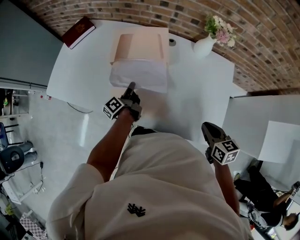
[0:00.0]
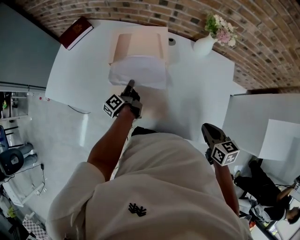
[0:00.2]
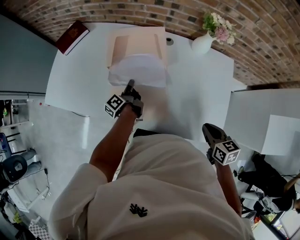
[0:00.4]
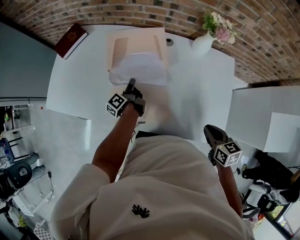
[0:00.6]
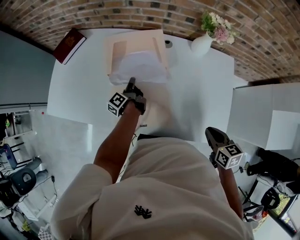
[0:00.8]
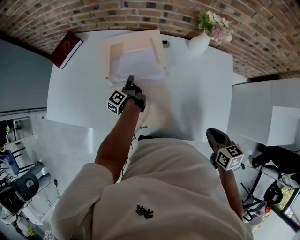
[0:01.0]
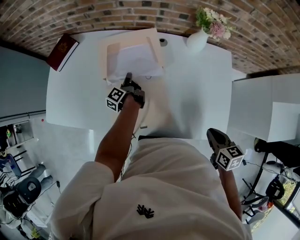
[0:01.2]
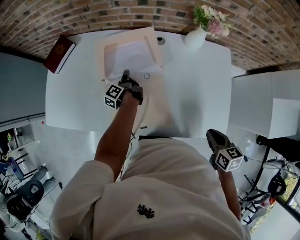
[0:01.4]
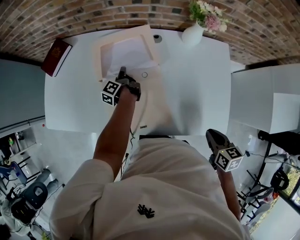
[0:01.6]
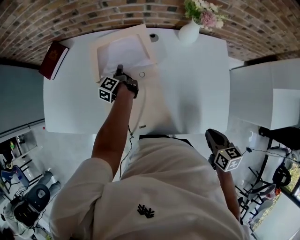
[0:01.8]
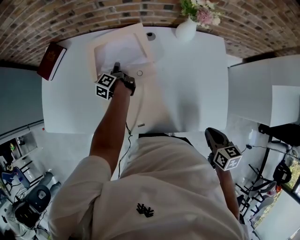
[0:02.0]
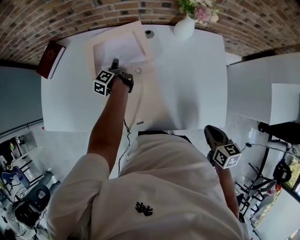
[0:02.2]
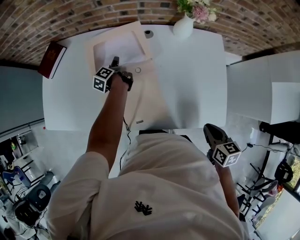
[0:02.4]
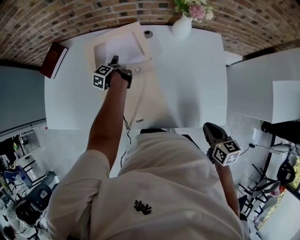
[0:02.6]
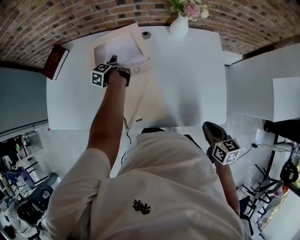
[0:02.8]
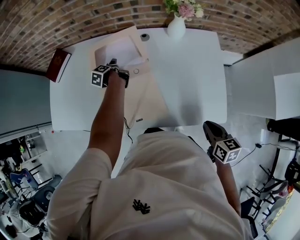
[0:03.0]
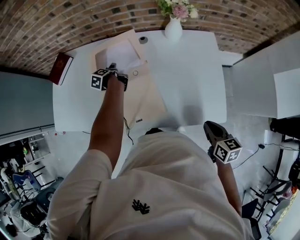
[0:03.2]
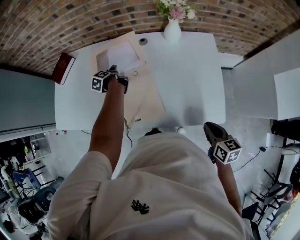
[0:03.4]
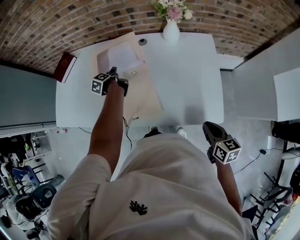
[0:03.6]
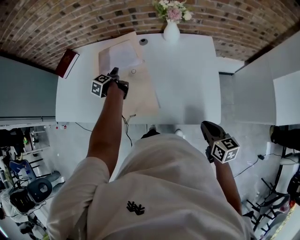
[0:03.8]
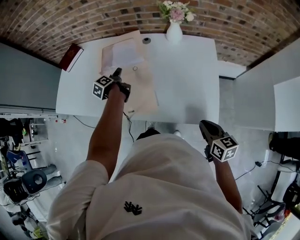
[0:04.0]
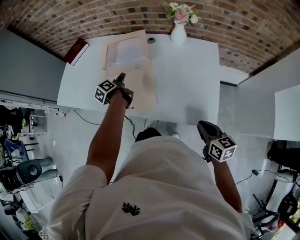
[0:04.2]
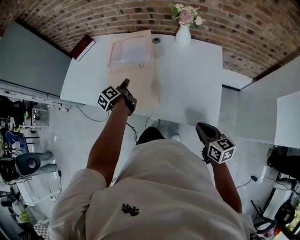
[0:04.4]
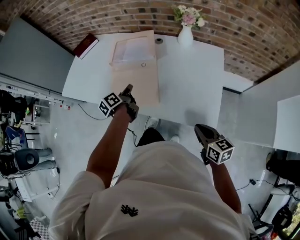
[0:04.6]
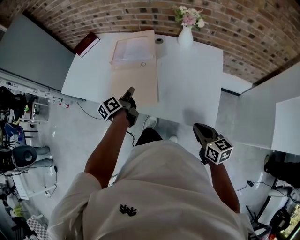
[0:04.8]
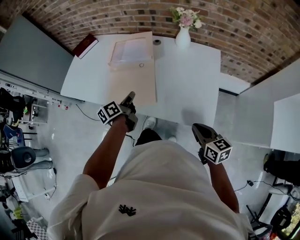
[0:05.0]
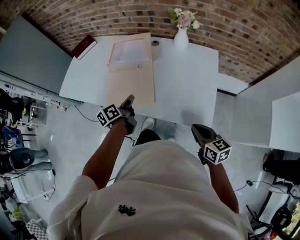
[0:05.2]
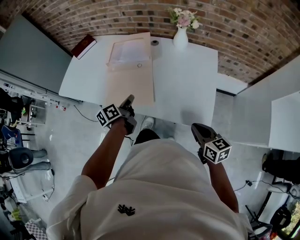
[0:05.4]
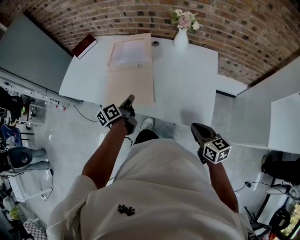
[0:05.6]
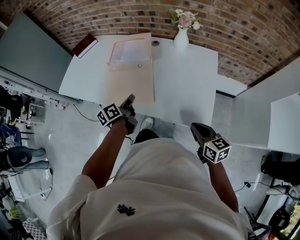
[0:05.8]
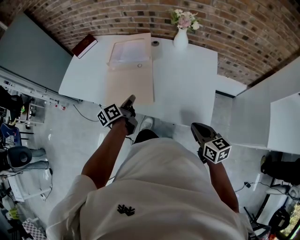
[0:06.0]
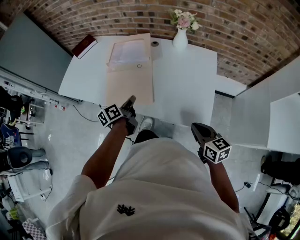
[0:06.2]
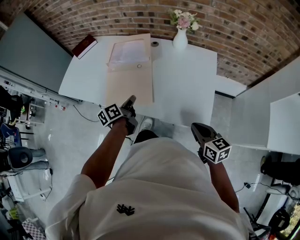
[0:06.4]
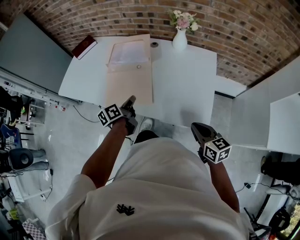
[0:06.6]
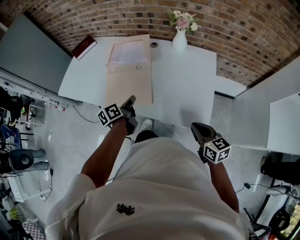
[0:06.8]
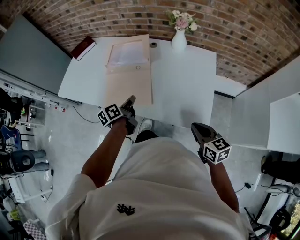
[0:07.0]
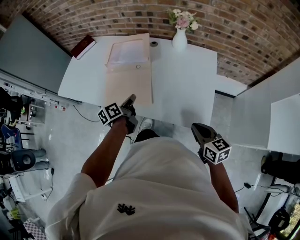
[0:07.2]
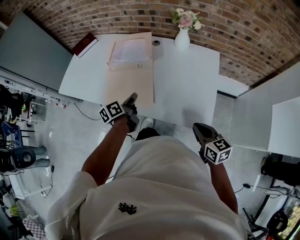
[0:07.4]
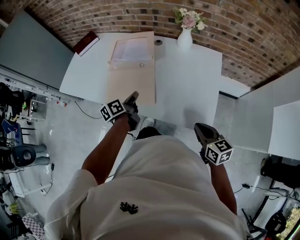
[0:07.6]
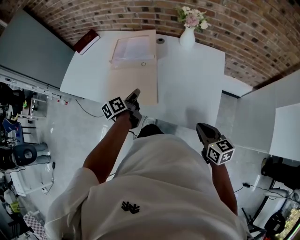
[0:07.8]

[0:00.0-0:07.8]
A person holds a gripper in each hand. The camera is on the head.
0:00.0 to 0:01.6: The left gripper is displaced forward by some 15 cm.
0:01.6 to 0:03.2: The right gripper goes roughly 5 cm backward. Meanwhile the left gripper rotates some 20 degrees, and opens.
0:03.2 to 0:04.6: The left gripper travels backward by some 30 cm, swivels roughly 20 degrees, and closes its fingers, while the right gripper goes some 10 cm backward, and swivels about 30 degrees.
0:04.6 to 0:06.2: The left gripper shifts approximately 10 cm backward.
0:06.2 to 0:07.8: The left gripper is displaced forward by roughly 5 cm.

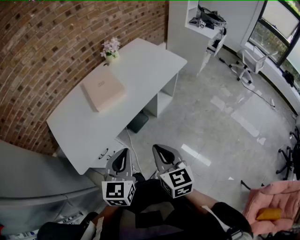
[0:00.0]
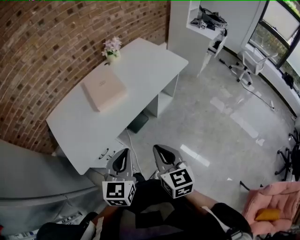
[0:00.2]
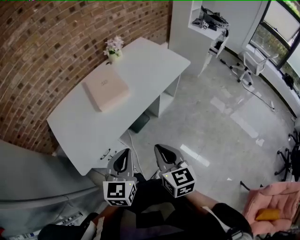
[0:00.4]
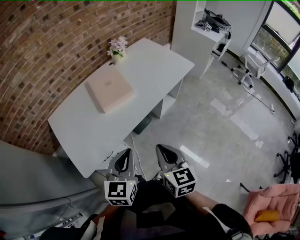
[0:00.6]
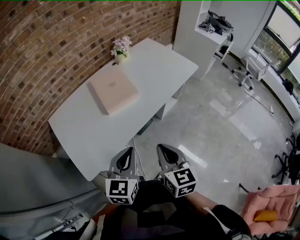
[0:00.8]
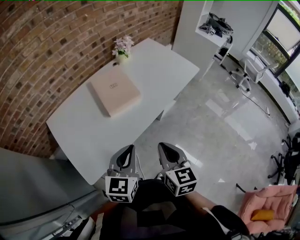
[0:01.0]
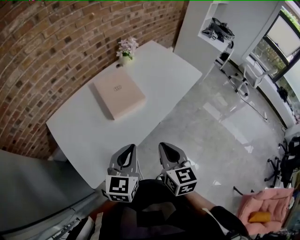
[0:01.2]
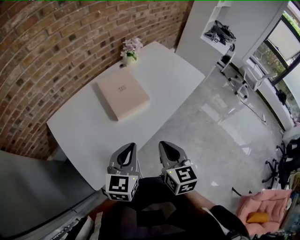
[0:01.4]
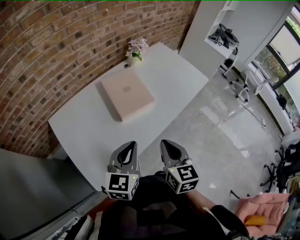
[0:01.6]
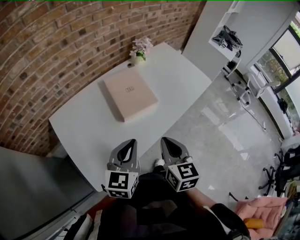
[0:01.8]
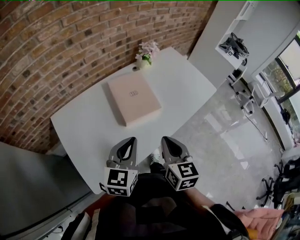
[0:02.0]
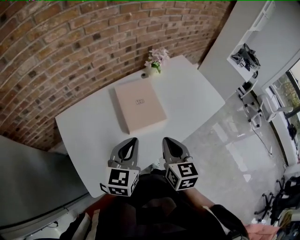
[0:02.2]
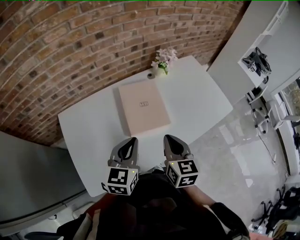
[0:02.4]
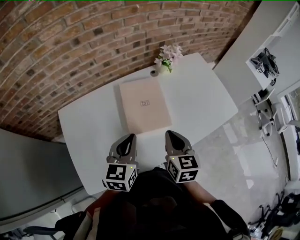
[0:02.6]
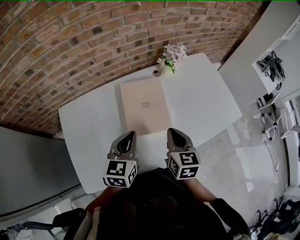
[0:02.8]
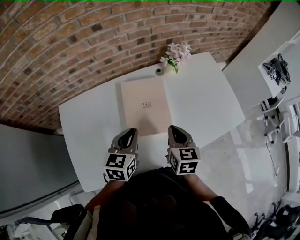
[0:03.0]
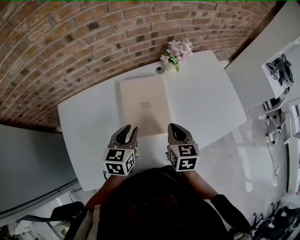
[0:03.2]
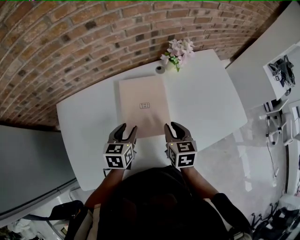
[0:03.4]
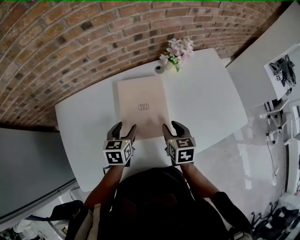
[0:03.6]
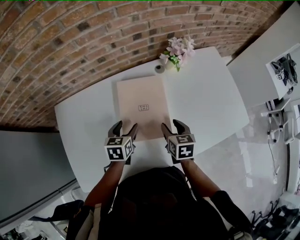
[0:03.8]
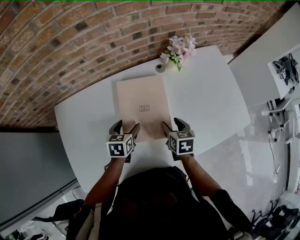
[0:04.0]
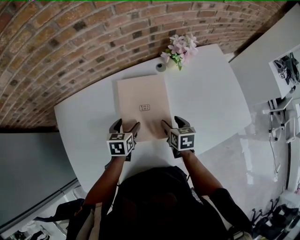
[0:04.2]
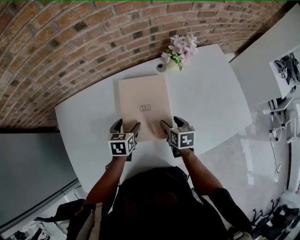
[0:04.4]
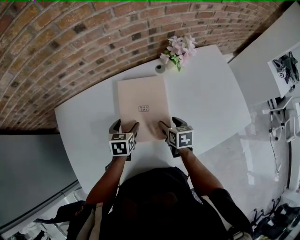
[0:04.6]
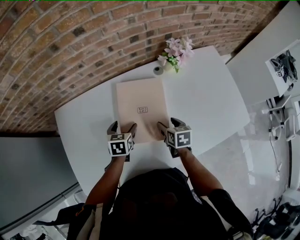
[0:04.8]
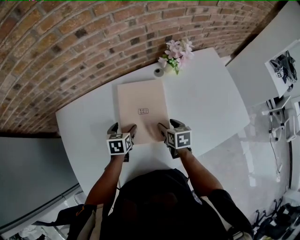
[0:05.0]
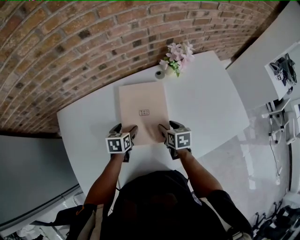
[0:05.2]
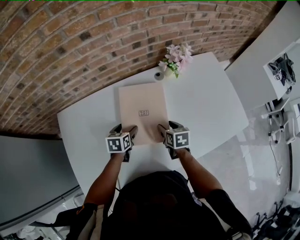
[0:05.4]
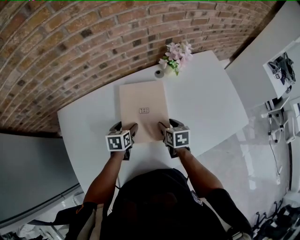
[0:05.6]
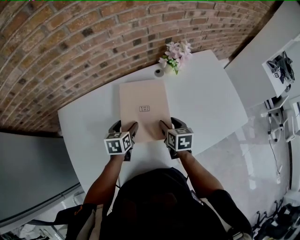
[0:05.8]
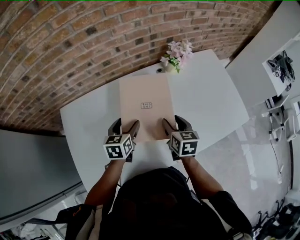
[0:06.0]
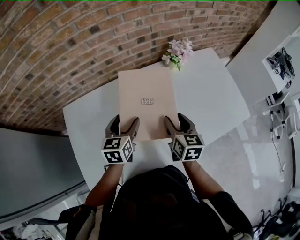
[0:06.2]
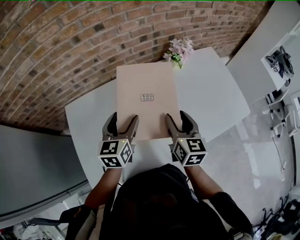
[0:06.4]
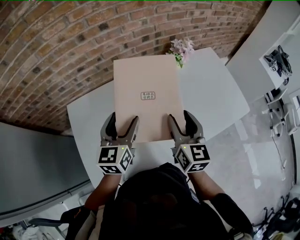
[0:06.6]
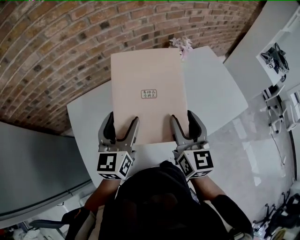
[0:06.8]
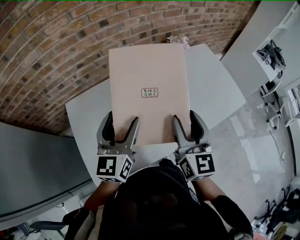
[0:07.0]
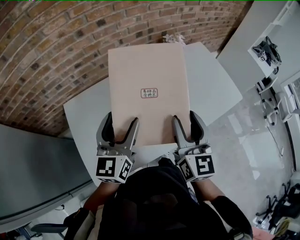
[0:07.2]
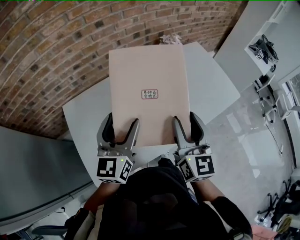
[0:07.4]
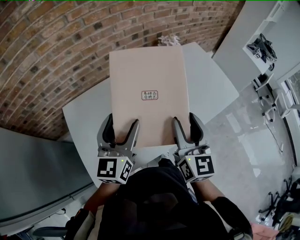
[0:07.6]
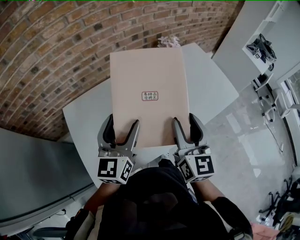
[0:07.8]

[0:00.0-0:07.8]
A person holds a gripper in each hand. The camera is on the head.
0:00.0 to 0:01.6: Both grippers travel together to the left and forward, approximately 20 cm.
0:01.6 to 0:03.2: The left gripper heads forward and downward, covering some 25 cm, and swivels some 30 degrees, while the right gripper heads forward, covering roughly 30 cm, and rotates roughly 20 degrees.
0:03.2 to 0:04.6: Both grippers travel together downward and forward, some 15 cm. The left gripper opens up. Meanwhile the right gripper opens up.
0:04.6 to 0:06.2: Both grippers travel together upward, about 15 cm. The right gripper rotates roughly 20 degrees.
0:06.2 to 0:07.8: Both grippers move upward and backward, roughly 20 cm. The left gripper rotates about 30 degrees; the right gripper rotates about 30 degrees.

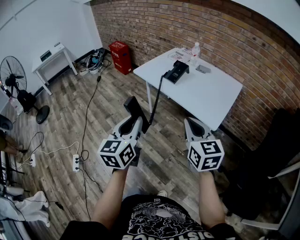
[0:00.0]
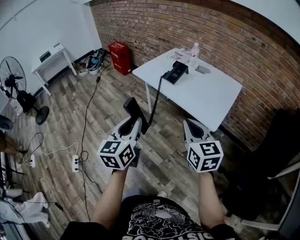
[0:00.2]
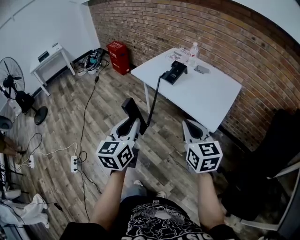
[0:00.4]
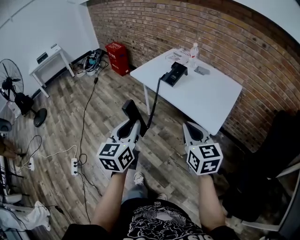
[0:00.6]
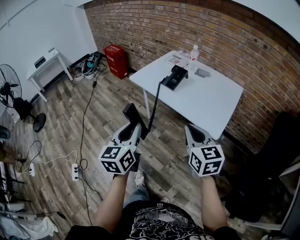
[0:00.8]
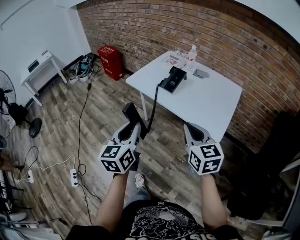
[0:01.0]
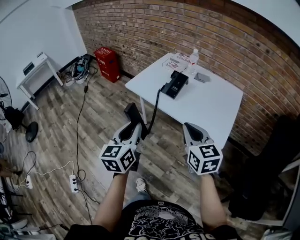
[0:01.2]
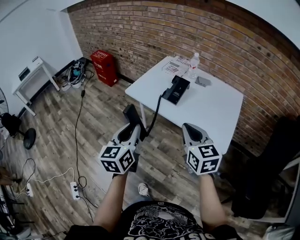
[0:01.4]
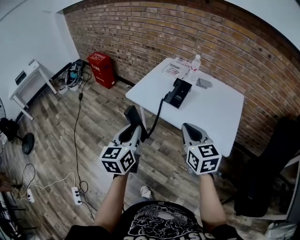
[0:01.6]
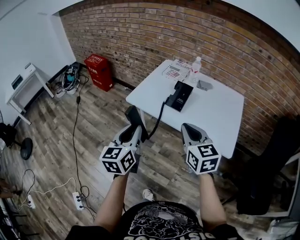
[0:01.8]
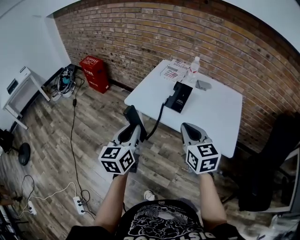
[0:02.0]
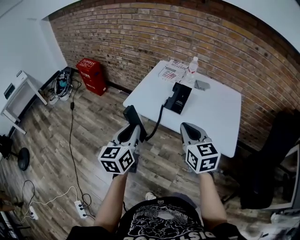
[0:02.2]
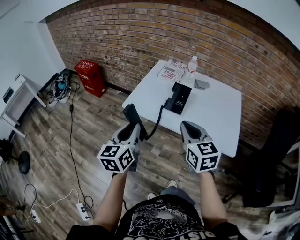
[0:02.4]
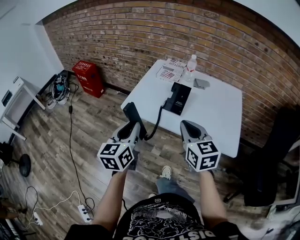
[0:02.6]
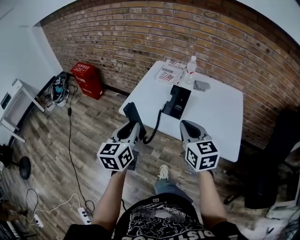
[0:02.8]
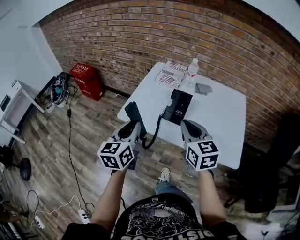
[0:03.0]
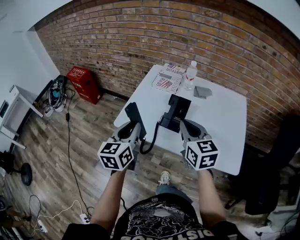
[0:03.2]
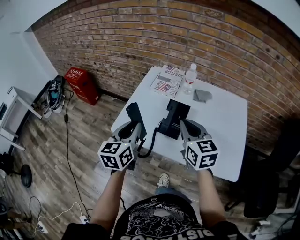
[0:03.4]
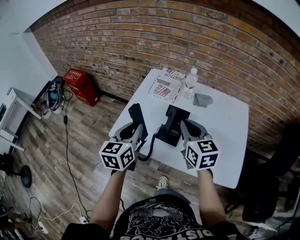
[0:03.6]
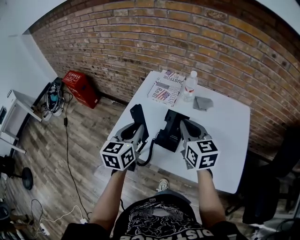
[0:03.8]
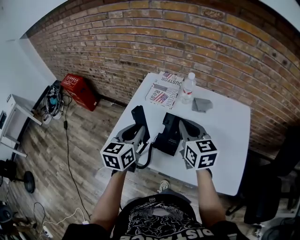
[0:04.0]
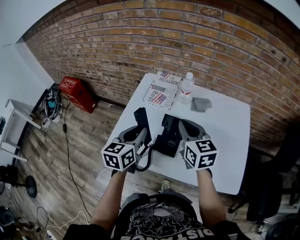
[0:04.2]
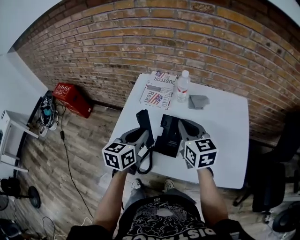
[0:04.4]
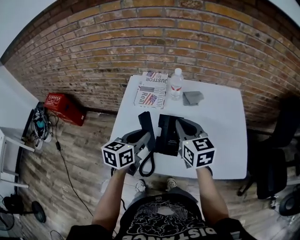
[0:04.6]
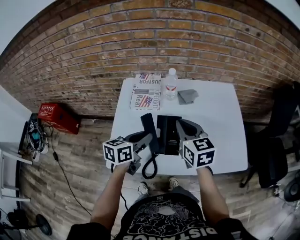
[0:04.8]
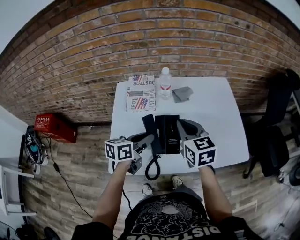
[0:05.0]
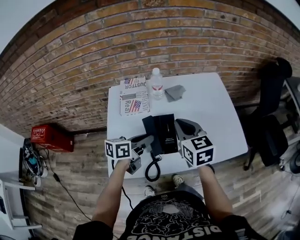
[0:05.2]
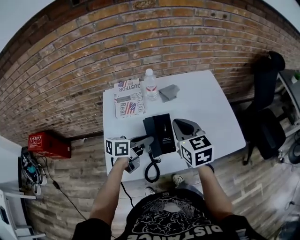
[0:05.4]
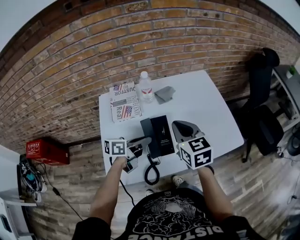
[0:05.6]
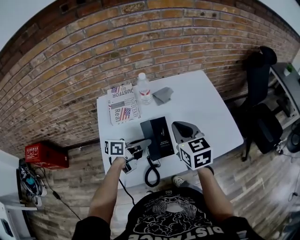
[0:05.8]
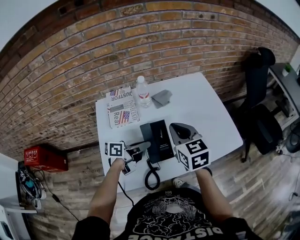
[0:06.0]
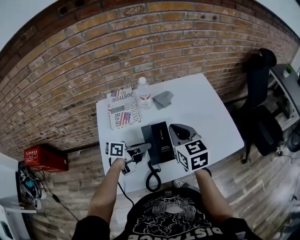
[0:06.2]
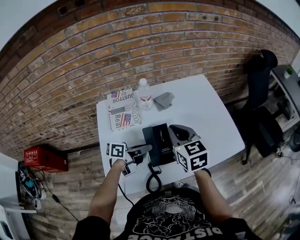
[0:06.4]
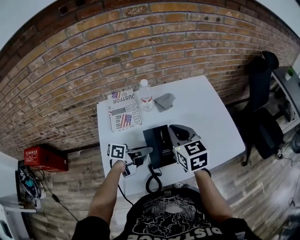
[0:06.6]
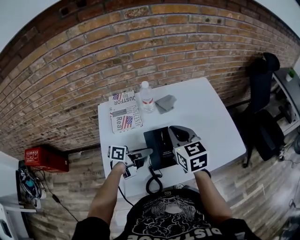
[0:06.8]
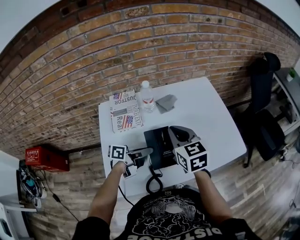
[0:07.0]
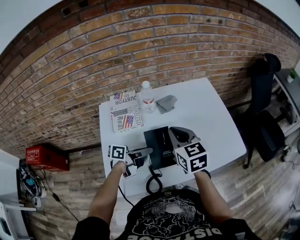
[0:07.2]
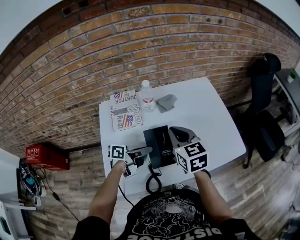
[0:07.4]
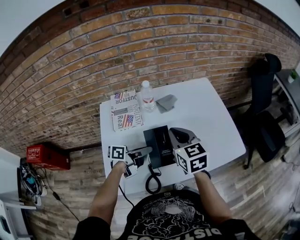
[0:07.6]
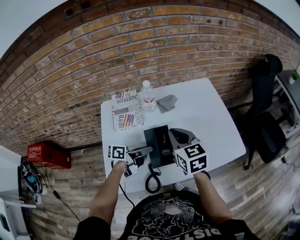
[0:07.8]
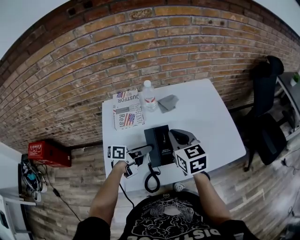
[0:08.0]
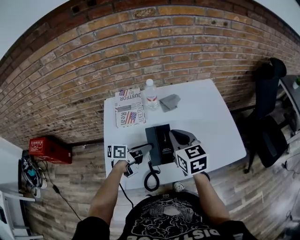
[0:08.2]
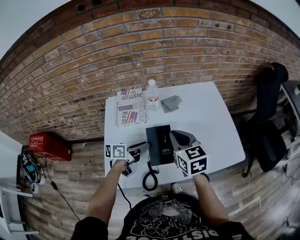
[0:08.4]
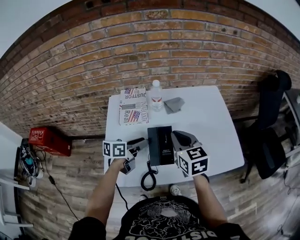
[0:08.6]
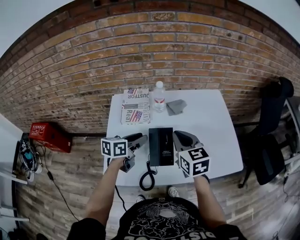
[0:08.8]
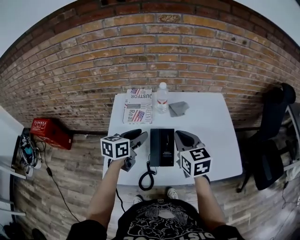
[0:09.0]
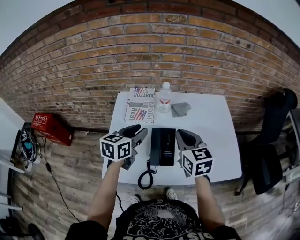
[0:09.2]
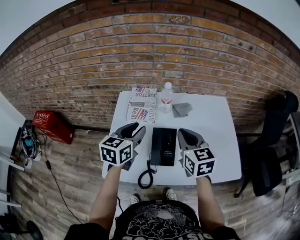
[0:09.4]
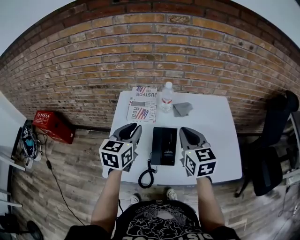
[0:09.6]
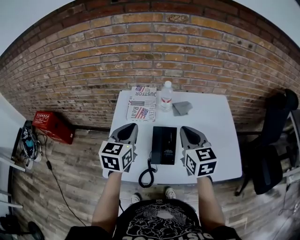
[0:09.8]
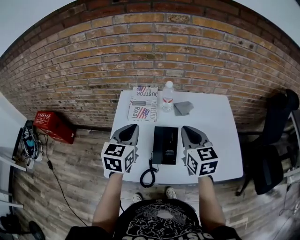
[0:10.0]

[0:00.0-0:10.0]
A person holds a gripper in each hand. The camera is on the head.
0:00.0 to 0:01.4: Both grippers travel together forward, about 20 cm.
0:01.4 to 0:02.8: The two grippers go approximately 15 cm forward.
0:02.8 to 0:04.2: Both grippers travel together forward, approximately 25 cm.
0:04.2 to 0:05.8: The left gripper shifts roughly 10 cm downward, and changes its angle by approximately 70 degrees. Meanwhile the right gripper swivels roughly 30 degrees.
0:05.8 to 0:07.2: The grippers stay close to where they were, moving slightly.
0:07.2 to 0:08.6: The left gripper turns by roughly 30 degrees.
0:08.6 to 0:10.0: The left gripper moves upward, approximately 15 cm, turns by approximately 50 degrees, and closes.
